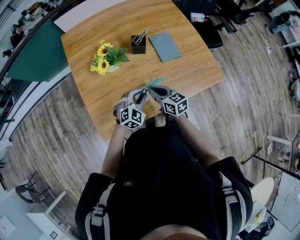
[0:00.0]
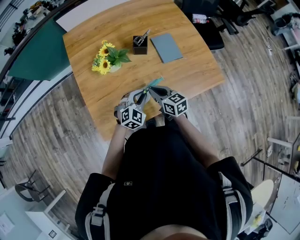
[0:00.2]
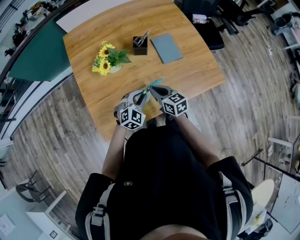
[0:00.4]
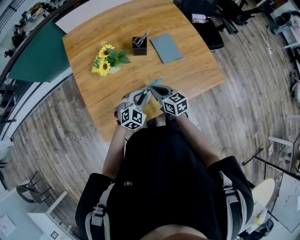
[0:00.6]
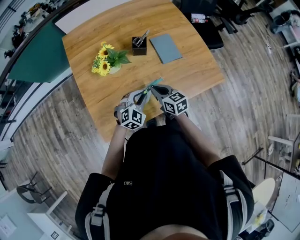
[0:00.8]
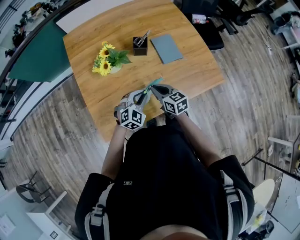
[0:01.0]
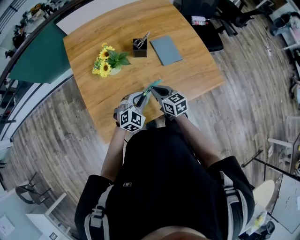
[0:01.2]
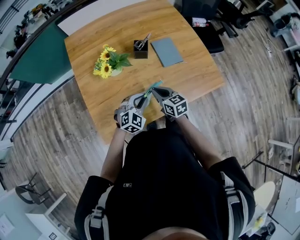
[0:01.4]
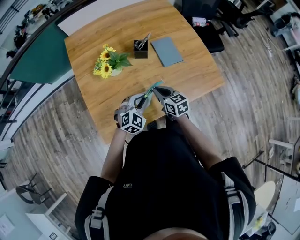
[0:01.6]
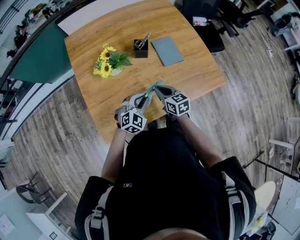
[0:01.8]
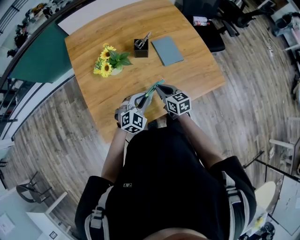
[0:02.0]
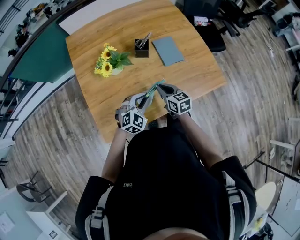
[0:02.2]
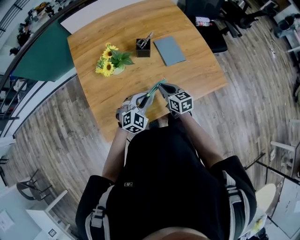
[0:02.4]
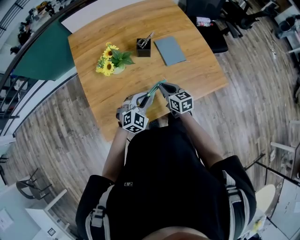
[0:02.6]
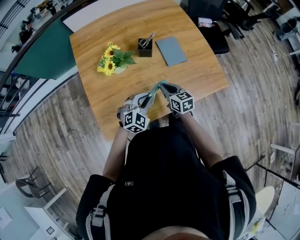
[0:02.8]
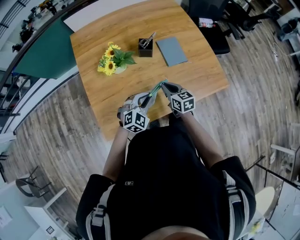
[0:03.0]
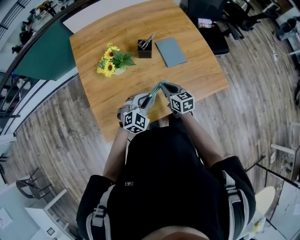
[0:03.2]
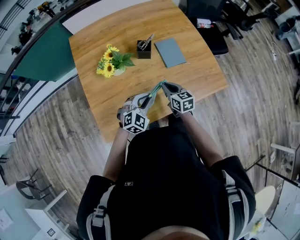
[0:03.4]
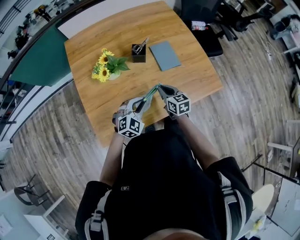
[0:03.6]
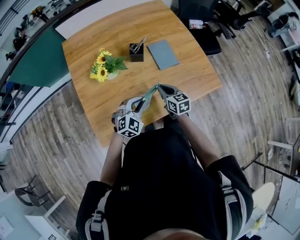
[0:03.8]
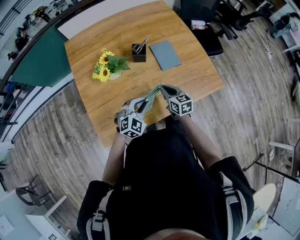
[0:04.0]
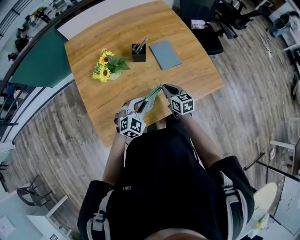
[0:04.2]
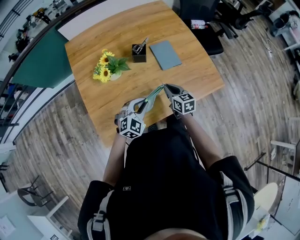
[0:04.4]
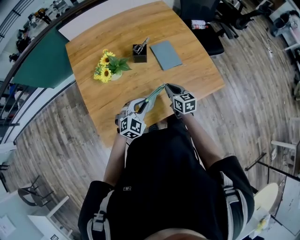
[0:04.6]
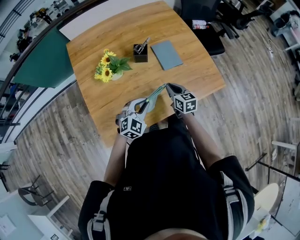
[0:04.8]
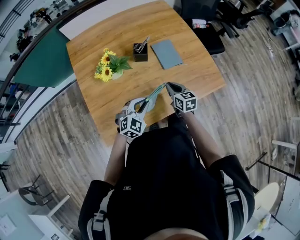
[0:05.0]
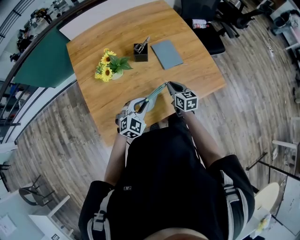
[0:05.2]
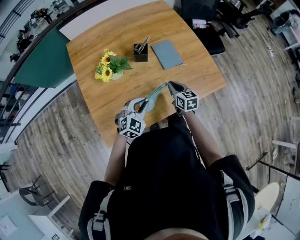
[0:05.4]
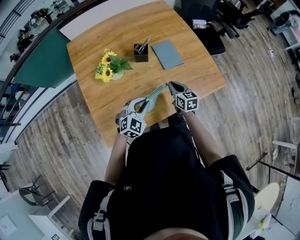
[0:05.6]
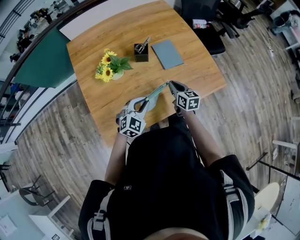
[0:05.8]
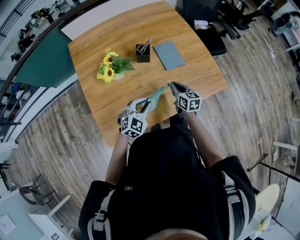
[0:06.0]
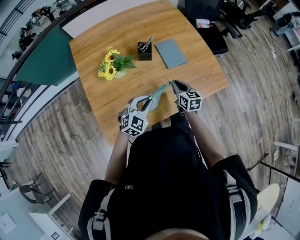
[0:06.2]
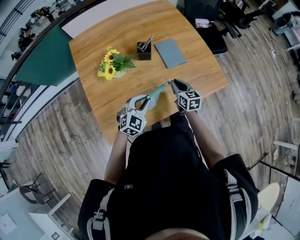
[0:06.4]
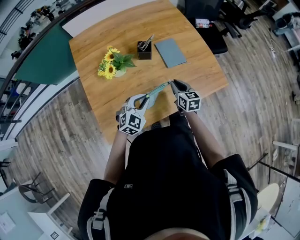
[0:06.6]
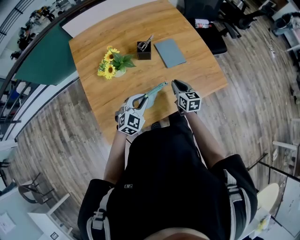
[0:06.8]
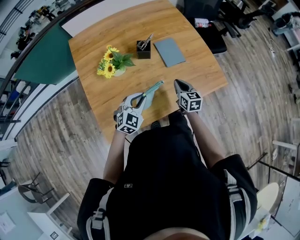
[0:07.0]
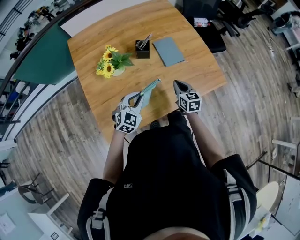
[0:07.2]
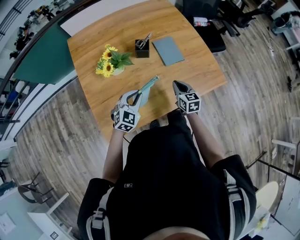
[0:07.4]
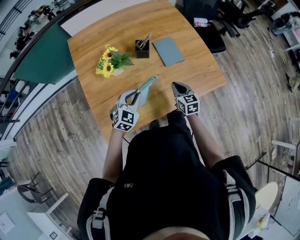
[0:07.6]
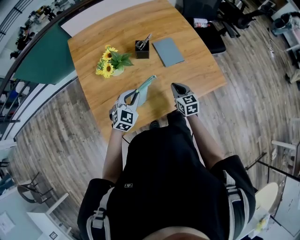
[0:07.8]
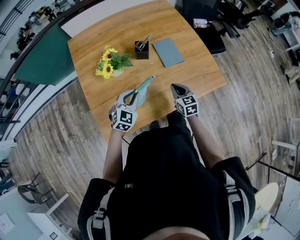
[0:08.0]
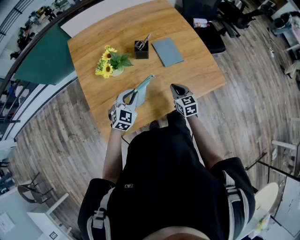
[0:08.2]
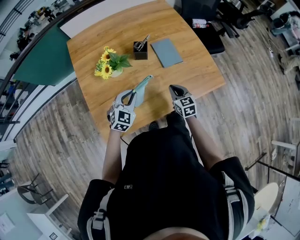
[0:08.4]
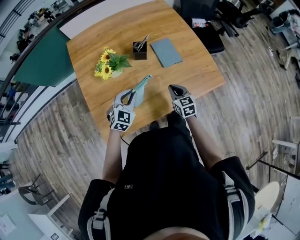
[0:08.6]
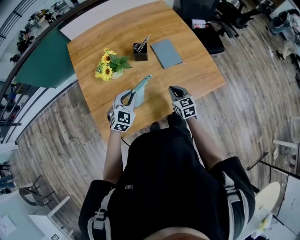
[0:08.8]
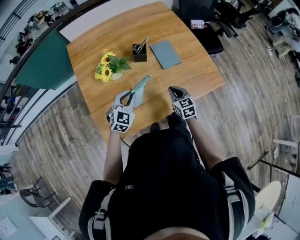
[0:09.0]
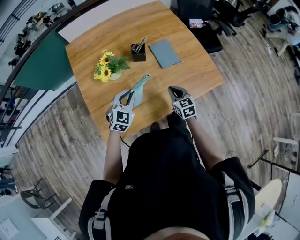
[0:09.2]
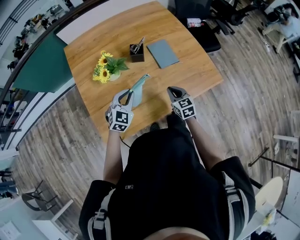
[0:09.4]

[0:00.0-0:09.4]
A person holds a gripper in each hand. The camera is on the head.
0.0 to 1.6 s: The grippers make only small movements.
1.6 to 3.2 s: There are only small adjustments of the grippers.
3.2 to 4.8 s: There are only small adjustments of the grippers.
4.8 to 6.2 s: The grippers move only a little.
6.2 to 7.8 s: The left gripper moves some 5 cm.
7.8 to 9.4 s: The grippers stay close to where they were, moving slightly.

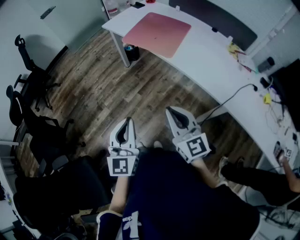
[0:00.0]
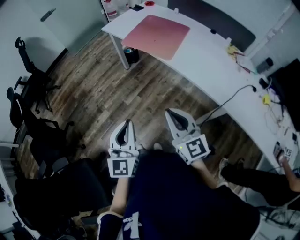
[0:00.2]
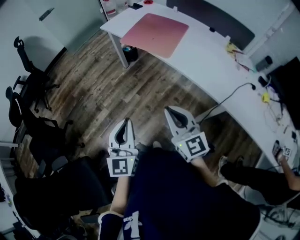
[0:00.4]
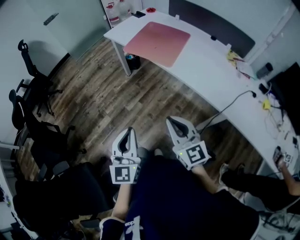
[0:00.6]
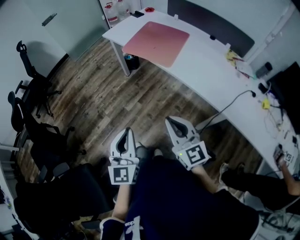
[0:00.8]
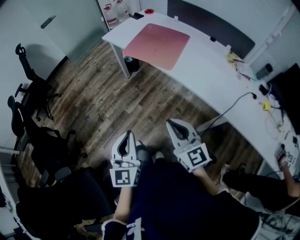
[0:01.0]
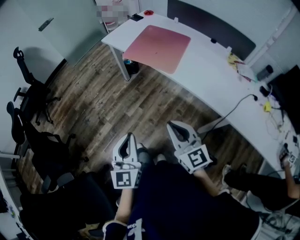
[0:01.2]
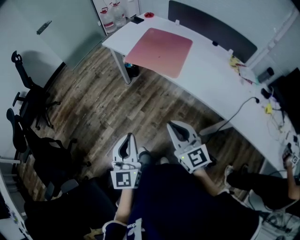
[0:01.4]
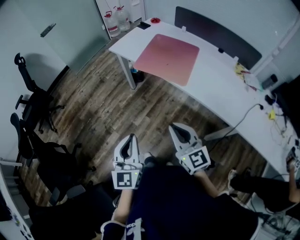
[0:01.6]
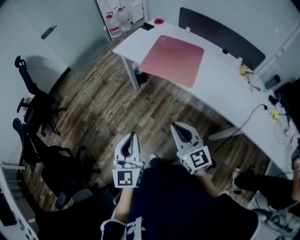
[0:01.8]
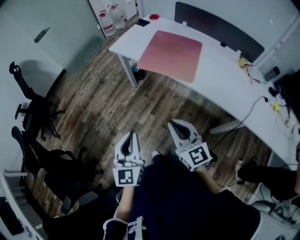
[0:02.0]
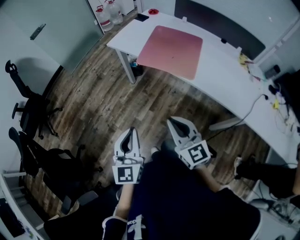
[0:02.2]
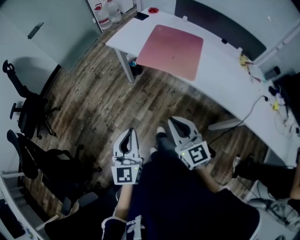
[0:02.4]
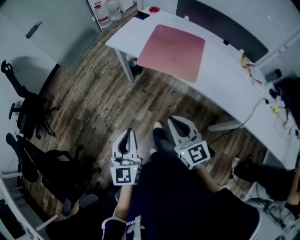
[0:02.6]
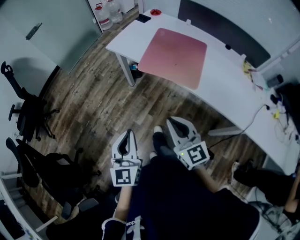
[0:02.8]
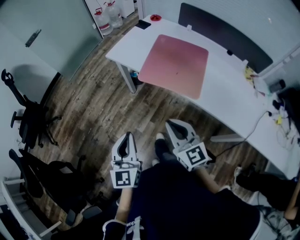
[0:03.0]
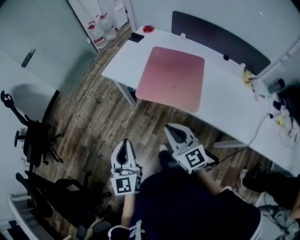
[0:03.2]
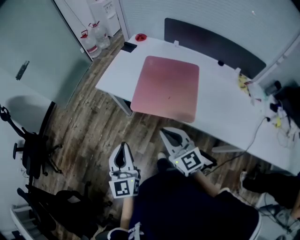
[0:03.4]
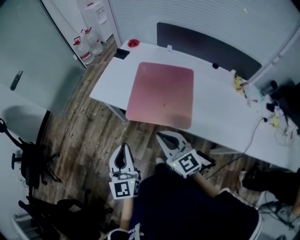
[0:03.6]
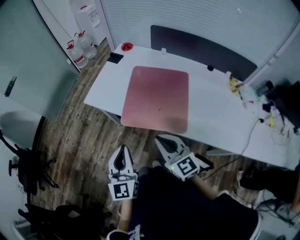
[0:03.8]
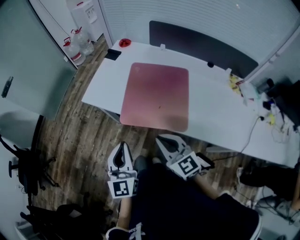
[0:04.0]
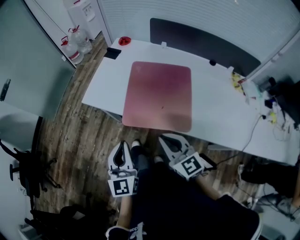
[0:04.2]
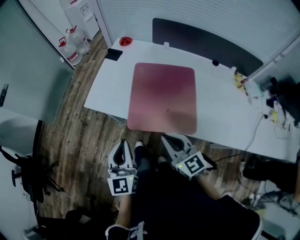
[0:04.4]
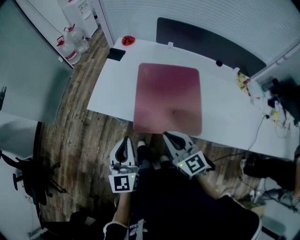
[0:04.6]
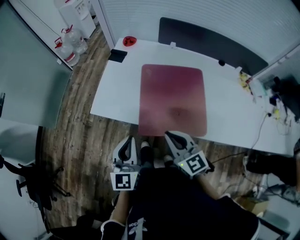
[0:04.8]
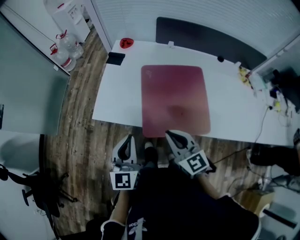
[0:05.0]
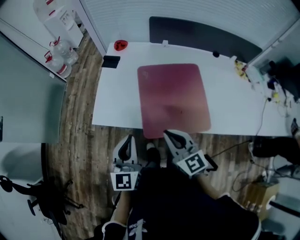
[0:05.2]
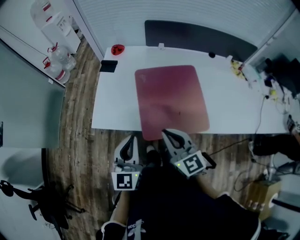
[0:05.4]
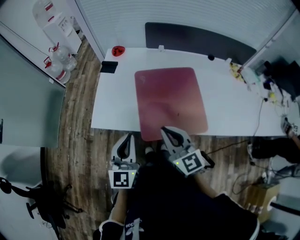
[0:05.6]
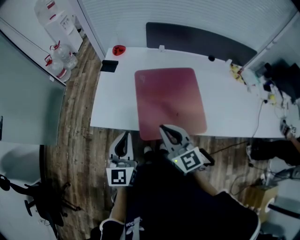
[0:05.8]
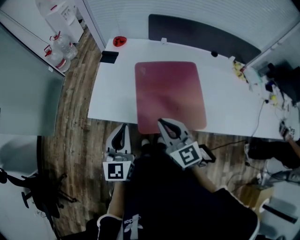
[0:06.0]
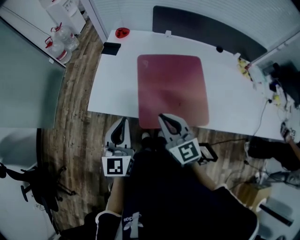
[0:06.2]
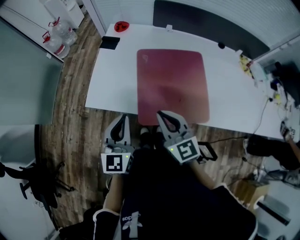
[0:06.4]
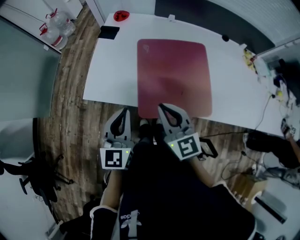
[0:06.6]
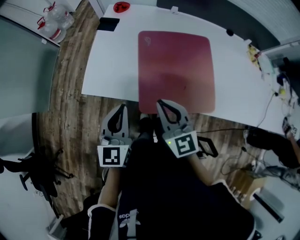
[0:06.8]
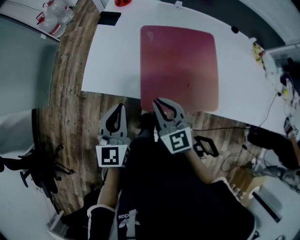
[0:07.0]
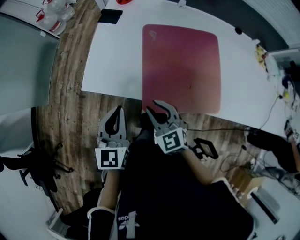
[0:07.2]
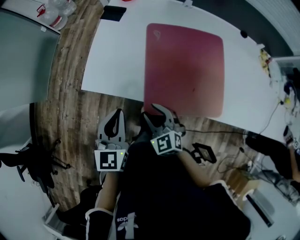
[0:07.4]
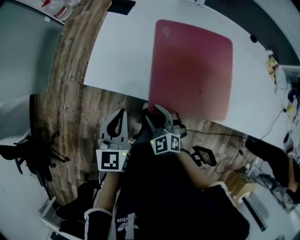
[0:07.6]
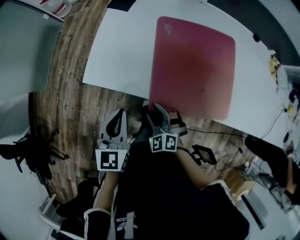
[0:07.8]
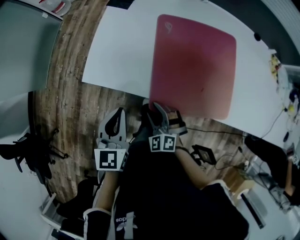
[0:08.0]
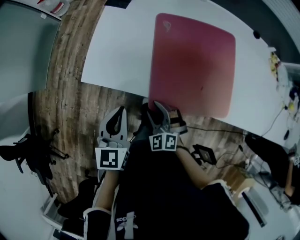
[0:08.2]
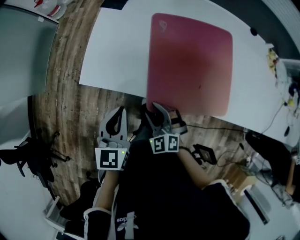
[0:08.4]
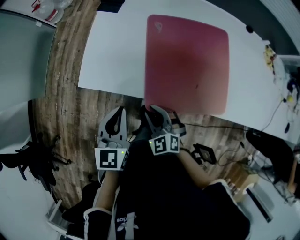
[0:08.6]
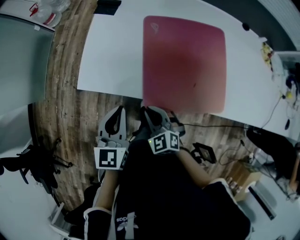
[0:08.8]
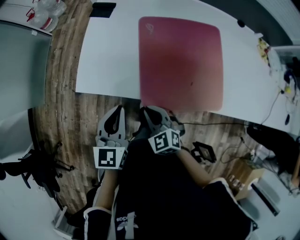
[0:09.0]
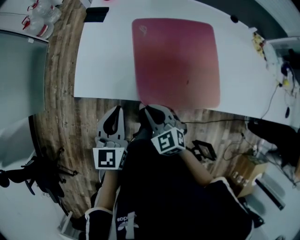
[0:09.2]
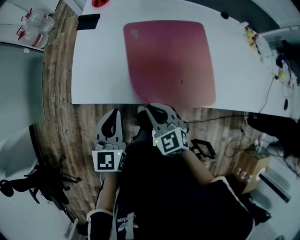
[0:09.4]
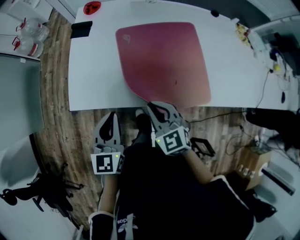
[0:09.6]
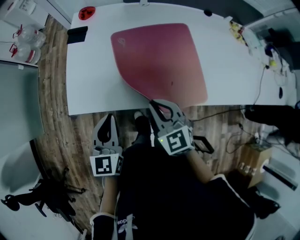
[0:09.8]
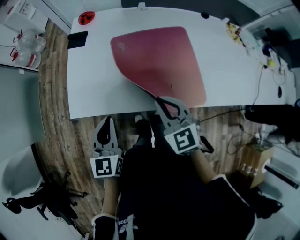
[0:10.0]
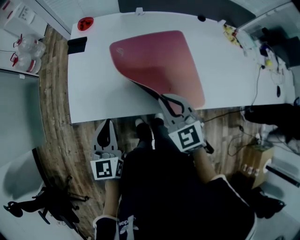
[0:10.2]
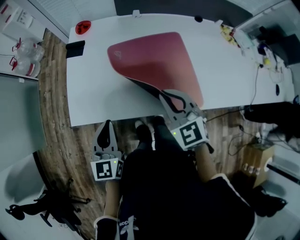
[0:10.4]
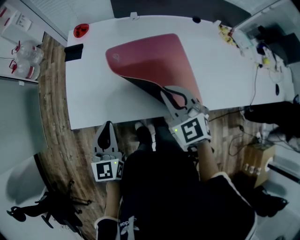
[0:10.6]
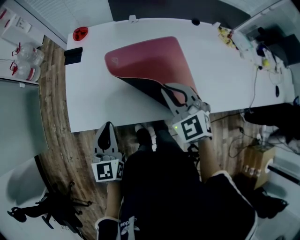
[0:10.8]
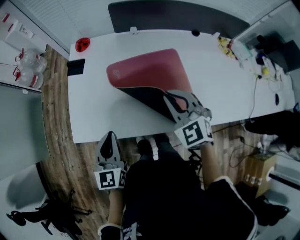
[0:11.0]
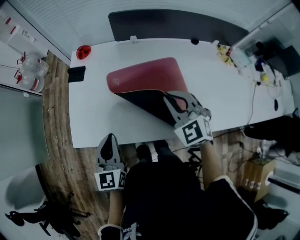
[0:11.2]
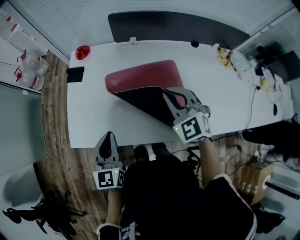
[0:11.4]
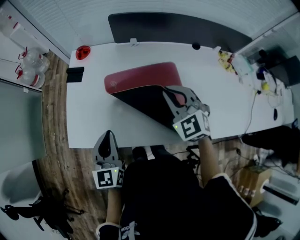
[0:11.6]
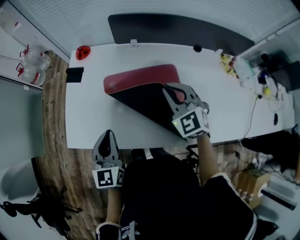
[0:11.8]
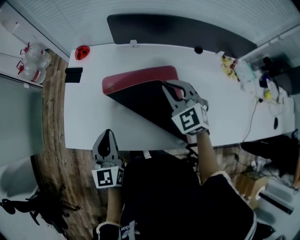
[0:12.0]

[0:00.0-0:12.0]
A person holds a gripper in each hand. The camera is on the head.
0.0 to 1.6 s: The two grippers go approximately 15 cm forward and to the left.
1.6 to 3.0 s: Both grippers travel together forward, some 20 cm.
3.0 to 4.4 s: Both grippers move forward, roughly 25 cm.
4.4 to 6.0 s: The left gripper is displaced forward by roughly 10 cm. Meanwhile the right gripper travels forward and to the left by some 10 cm.
6.0 to 7.6 s: The left gripper travels downward and to the left by approximately 15 cm, while the right gripper travels downward by some 25 cm, points its fingers about 30 degrees further downward, and opens its fingers.
7.6 to 9.0 s: The right gripper closes up.
9.0 to 10.4 s: The right gripper shifts some 25 cm upward, to the right and forward.
10.4 to 12.0 s: The left gripper travels to the right and forward by approximately 15 cm, while the right gripper goes about 20 cm forward and to the right.

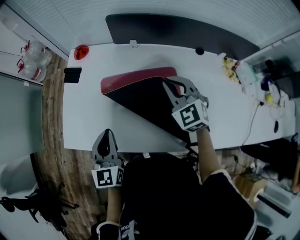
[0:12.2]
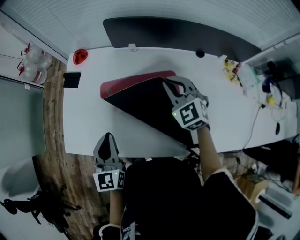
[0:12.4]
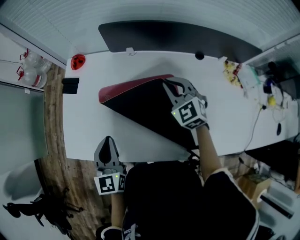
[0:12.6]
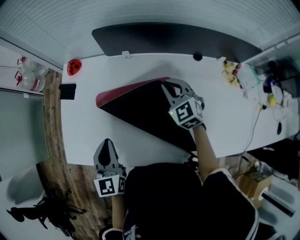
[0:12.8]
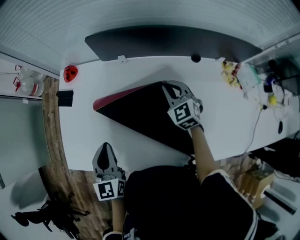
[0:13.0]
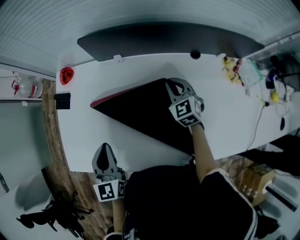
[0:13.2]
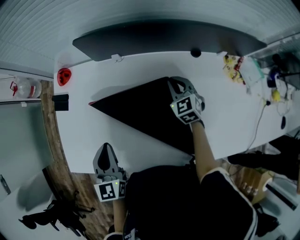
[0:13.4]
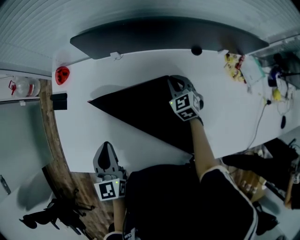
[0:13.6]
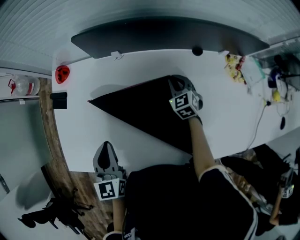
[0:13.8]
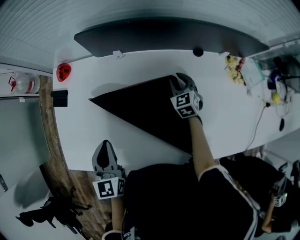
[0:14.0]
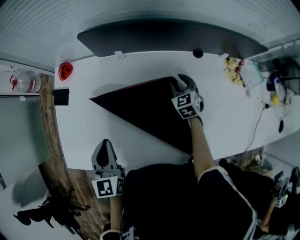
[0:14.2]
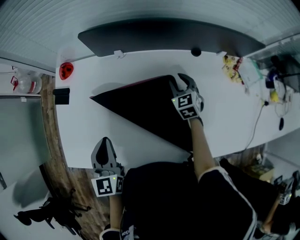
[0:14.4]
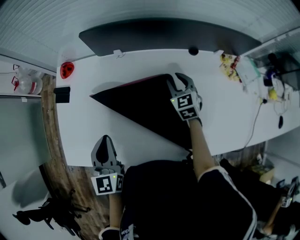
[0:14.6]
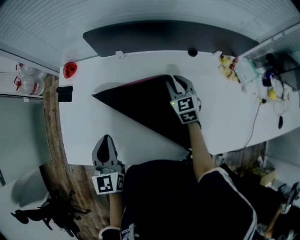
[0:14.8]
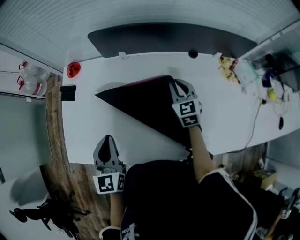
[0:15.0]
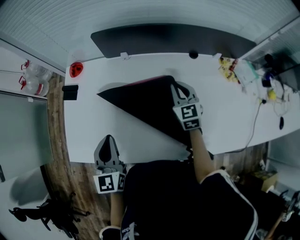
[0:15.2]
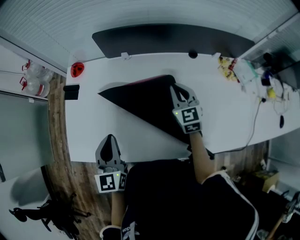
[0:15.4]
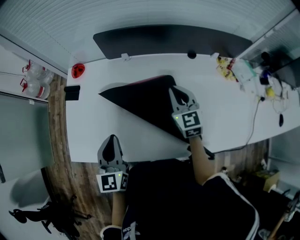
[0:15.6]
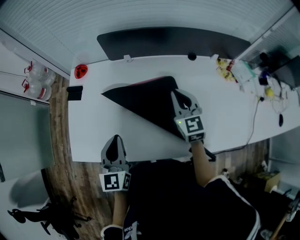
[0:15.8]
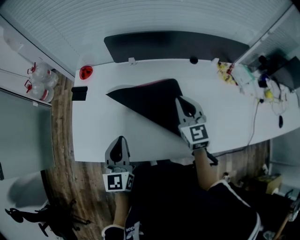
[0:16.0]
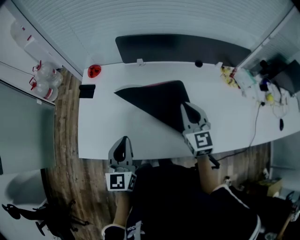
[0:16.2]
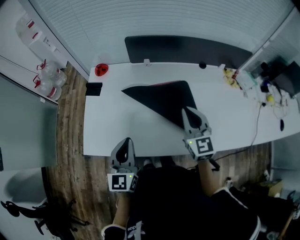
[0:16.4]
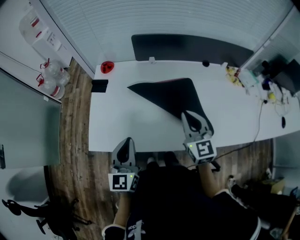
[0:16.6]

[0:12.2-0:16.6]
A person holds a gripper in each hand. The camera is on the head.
12.2 to 13.6 s: The right gripper shifts some 25 cm downward, to the right and forward, and swivels about 30 degrees, while the left gripper travels forward and to the right by roughly 10 cm.
13.6 to 15.2 s: The right gripper travels upward and backward by some 15 cm, and opens, then closes once more. Meanwhile the left gripper goes about 5 cm backward.
15.2 to 16.6 s: The left gripper heads backward and to the left, covering some 15 cm. Meanwhile the right gripper travels backward, to the left and upward by roughly 25 cm.
